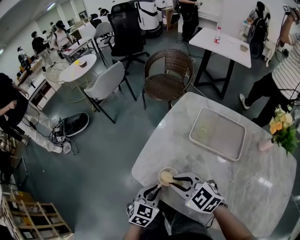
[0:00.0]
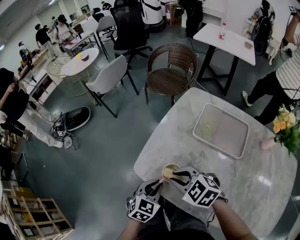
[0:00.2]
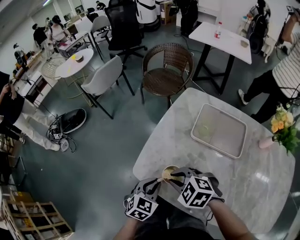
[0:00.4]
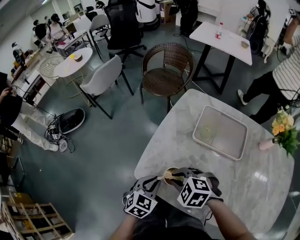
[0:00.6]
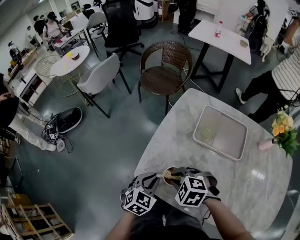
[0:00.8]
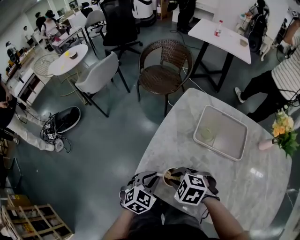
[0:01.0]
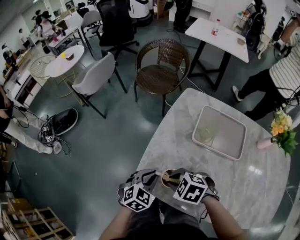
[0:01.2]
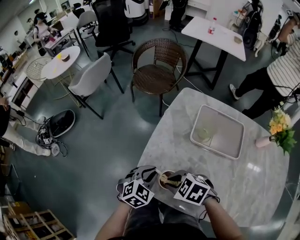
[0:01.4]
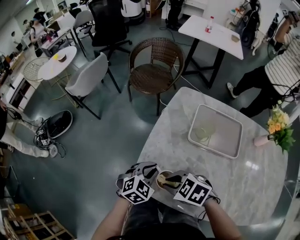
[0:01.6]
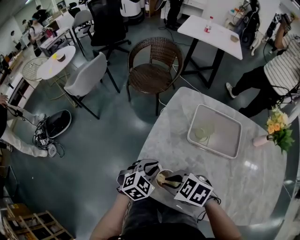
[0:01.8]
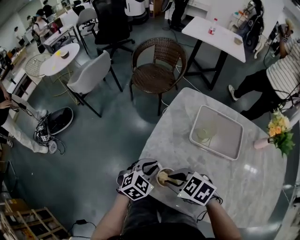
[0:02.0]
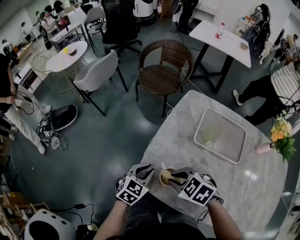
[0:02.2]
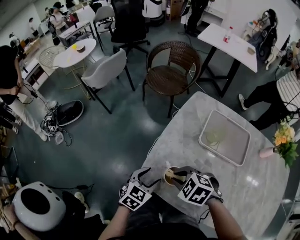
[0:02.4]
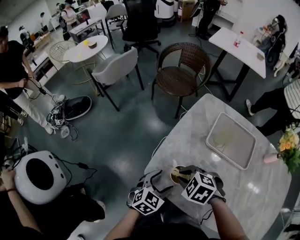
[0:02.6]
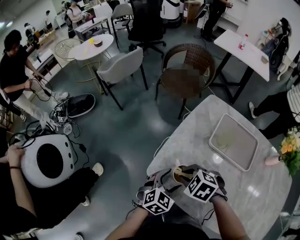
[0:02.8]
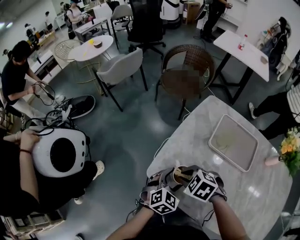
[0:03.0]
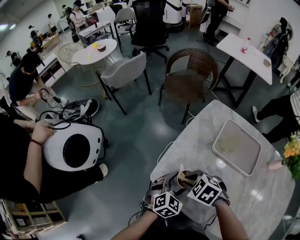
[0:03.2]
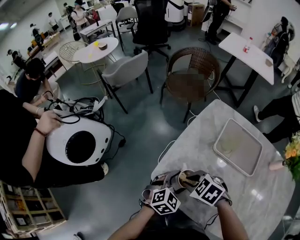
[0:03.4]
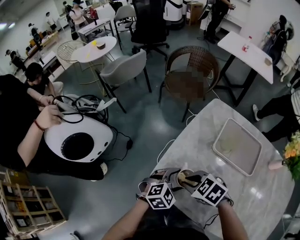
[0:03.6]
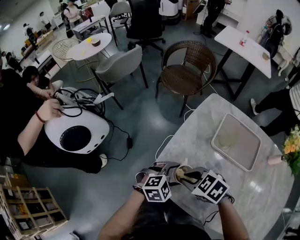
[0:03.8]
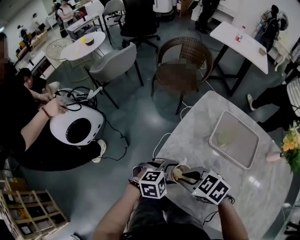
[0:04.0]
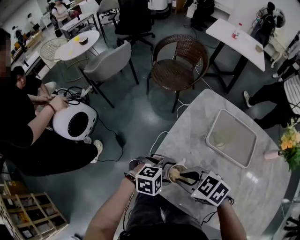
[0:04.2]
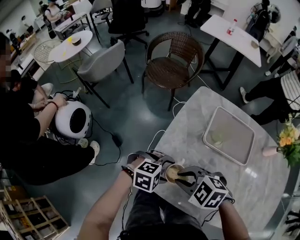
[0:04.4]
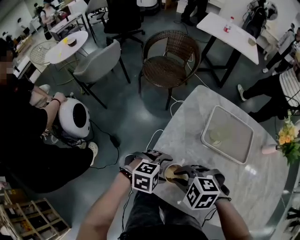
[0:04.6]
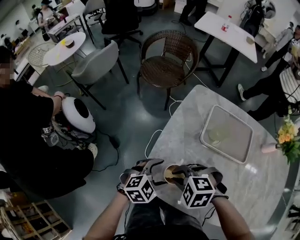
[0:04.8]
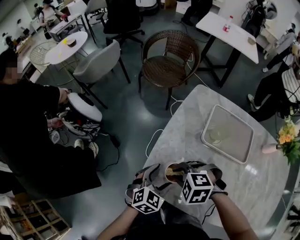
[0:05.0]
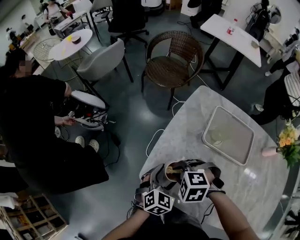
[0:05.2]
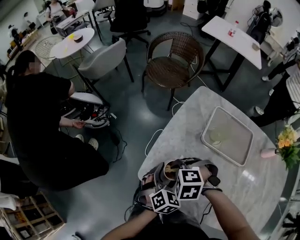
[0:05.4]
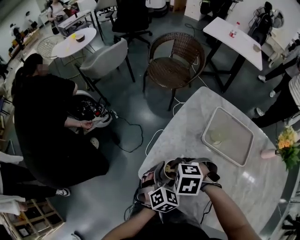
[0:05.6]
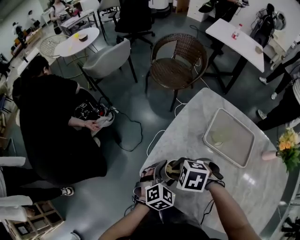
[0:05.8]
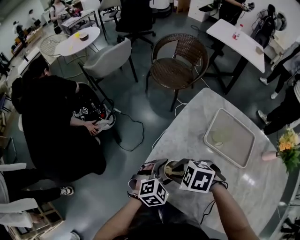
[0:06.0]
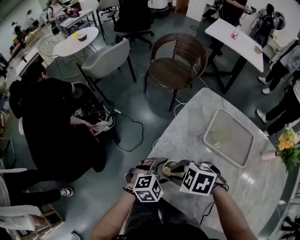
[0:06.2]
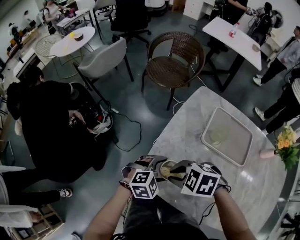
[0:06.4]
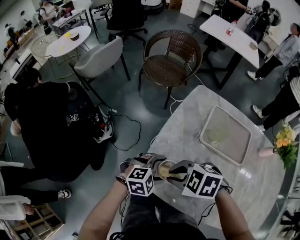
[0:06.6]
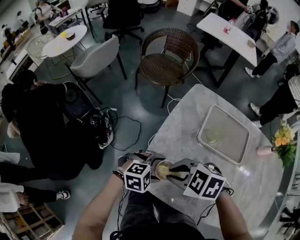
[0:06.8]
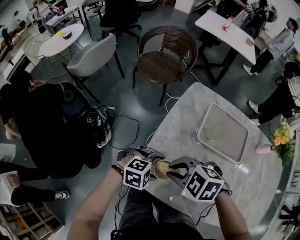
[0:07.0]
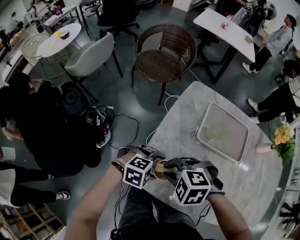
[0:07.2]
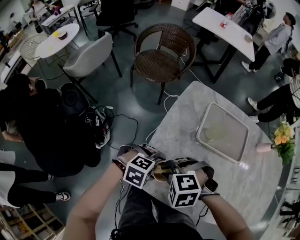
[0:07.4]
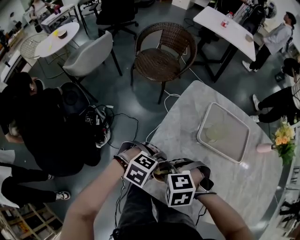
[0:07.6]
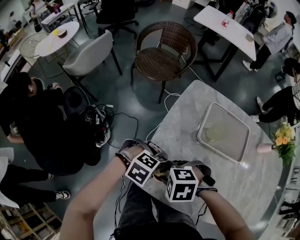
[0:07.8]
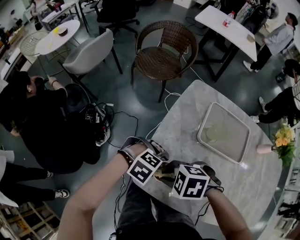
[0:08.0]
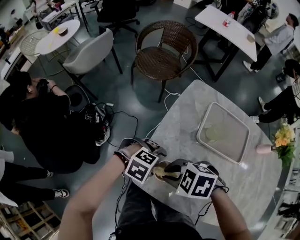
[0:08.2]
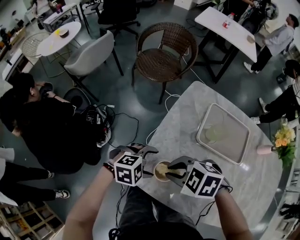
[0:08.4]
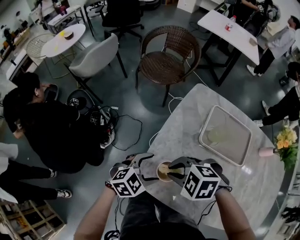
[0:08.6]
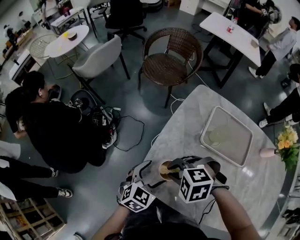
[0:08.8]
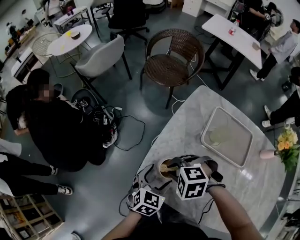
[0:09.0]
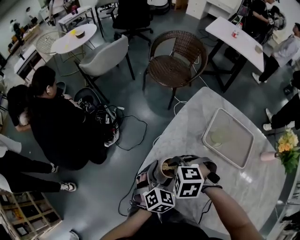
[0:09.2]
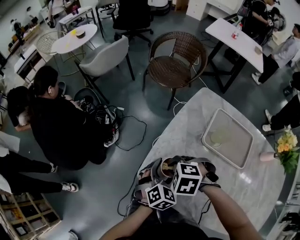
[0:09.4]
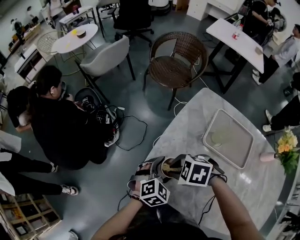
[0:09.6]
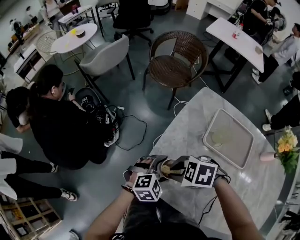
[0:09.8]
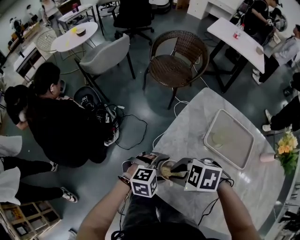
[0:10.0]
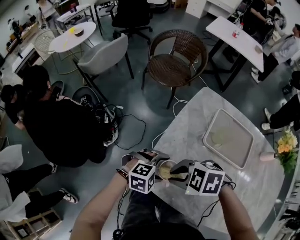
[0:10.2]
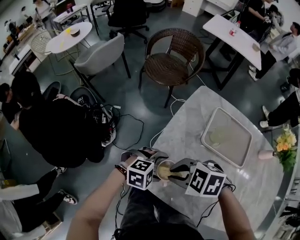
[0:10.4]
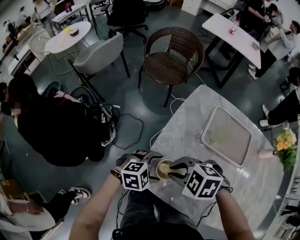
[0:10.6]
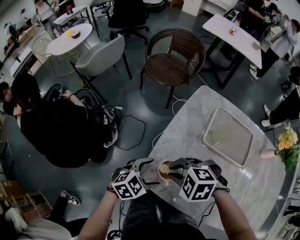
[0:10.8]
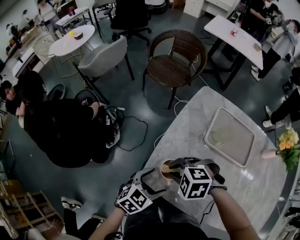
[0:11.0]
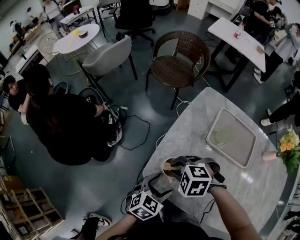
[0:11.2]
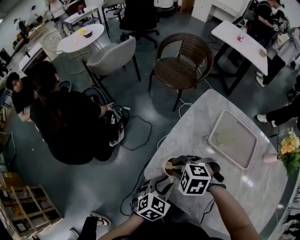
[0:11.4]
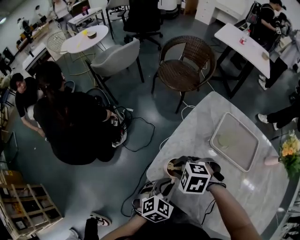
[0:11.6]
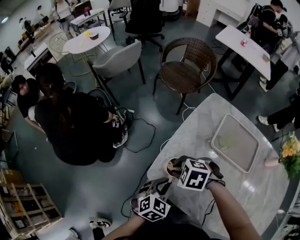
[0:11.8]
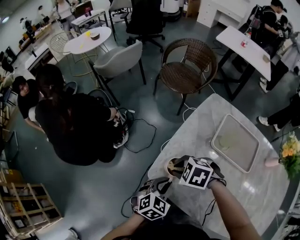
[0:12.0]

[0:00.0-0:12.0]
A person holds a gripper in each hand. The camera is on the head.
0:00.0 to 0:01.6: The right gripper ends up about 5 cm from where it was, and swivels roughly 30 degrees; the left gripper moves approximately 15 cm, and turns by some 30 degrees.
0:01.6 to 0:03.0: The left gripper moves approximately 5 cm, and opens.
0:03.0 to 0:04.4: The left gripper rotates approximately 60 degrees.
0:04.4 to 0:06.0: The left gripper swivels approximately 40 degrees.
0:06.0 to 0:07.6: The right gripper rotates about 20 degrees, while the left gripper turns by approximately 60 degrees.
0:07.6 to 0:09.0: The left gripper rotates some 90 degrees.
0:09.0 to 0:10.4: The right gripper moves some 5 cm, and turns by some 20 degrees; the left gripper swivels about 60 degrees.
0:10.4 to 0:12.0: The right gripper moves downward, some 5 cm. Meanwhile the left gripper moves about 5 cm, rotates approximately 60 degrees, and closes its fingers.

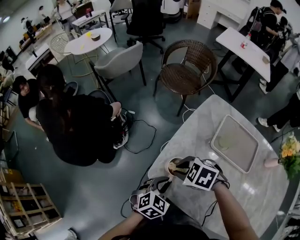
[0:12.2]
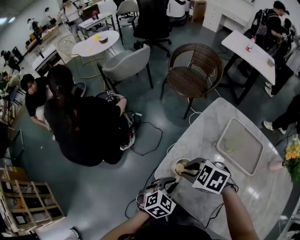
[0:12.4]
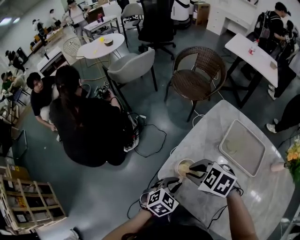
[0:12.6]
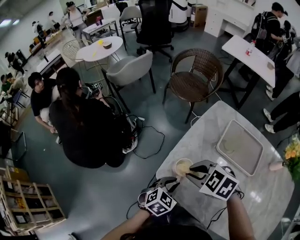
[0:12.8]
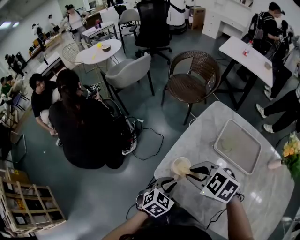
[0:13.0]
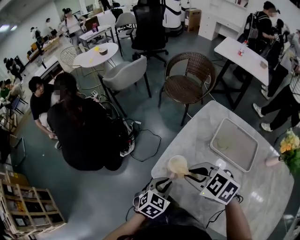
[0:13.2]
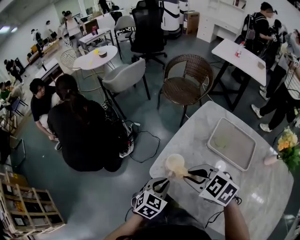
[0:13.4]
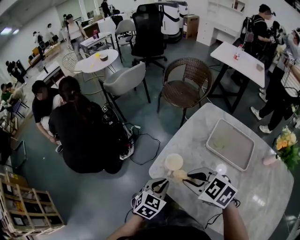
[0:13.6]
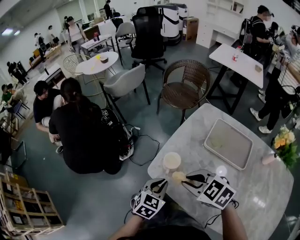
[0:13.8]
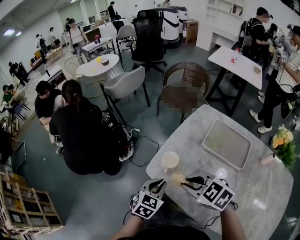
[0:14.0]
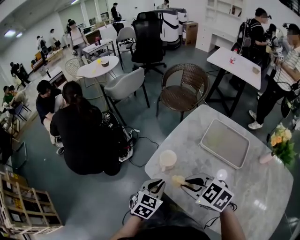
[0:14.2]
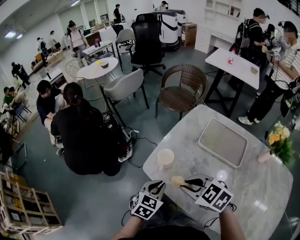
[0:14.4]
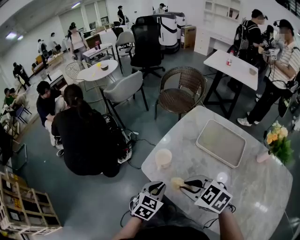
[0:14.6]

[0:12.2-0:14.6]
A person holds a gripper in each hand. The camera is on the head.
0:12.2 to 0:13.4: The right gripper is displaced upward by about 10 cm, and turns by roughly 20 degrees.
0:13.4 to 0:14.6: The left gripper is displaced backward by some 5 cm; the right gripper goes about 10 cm backward.

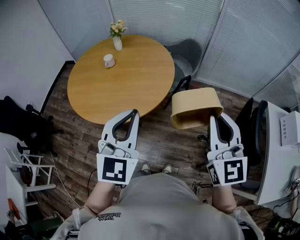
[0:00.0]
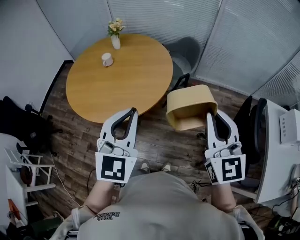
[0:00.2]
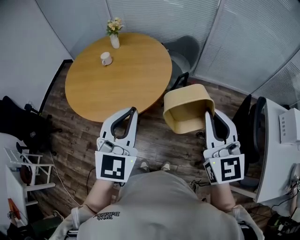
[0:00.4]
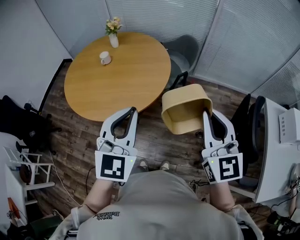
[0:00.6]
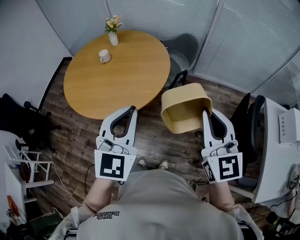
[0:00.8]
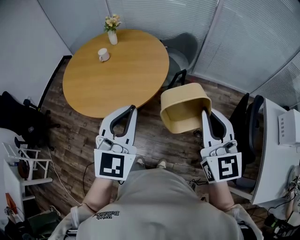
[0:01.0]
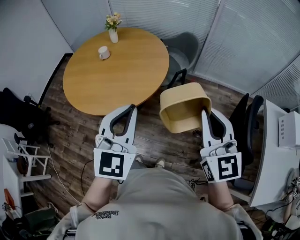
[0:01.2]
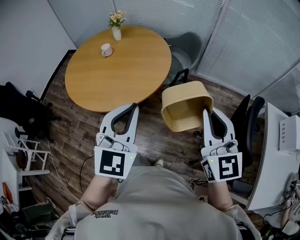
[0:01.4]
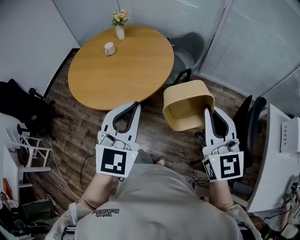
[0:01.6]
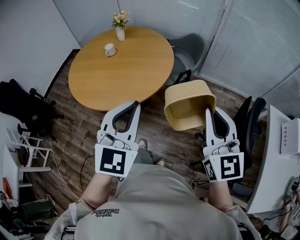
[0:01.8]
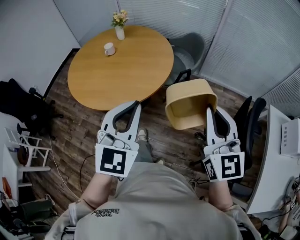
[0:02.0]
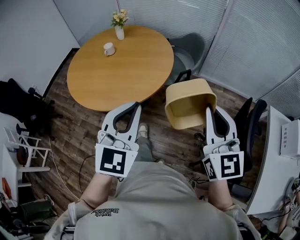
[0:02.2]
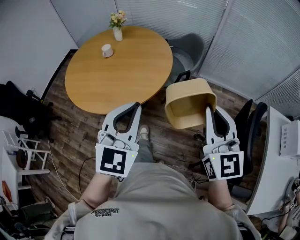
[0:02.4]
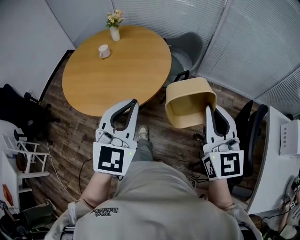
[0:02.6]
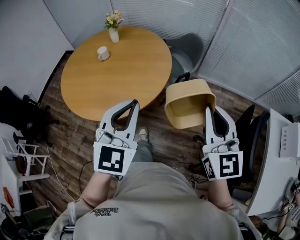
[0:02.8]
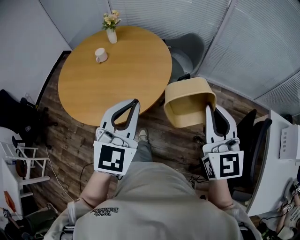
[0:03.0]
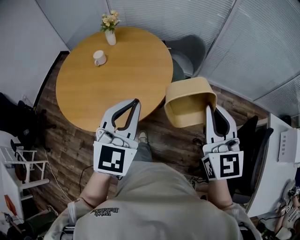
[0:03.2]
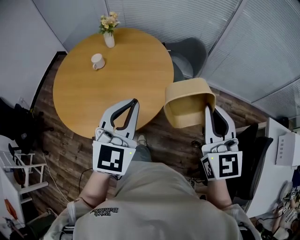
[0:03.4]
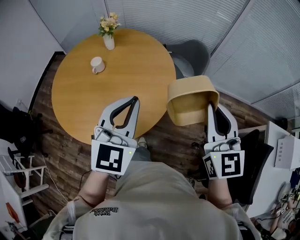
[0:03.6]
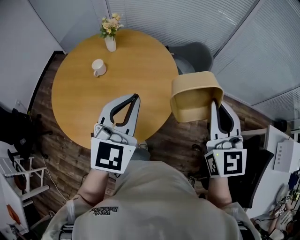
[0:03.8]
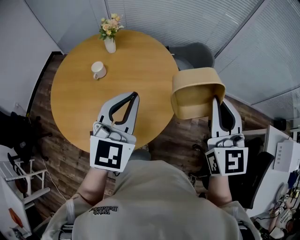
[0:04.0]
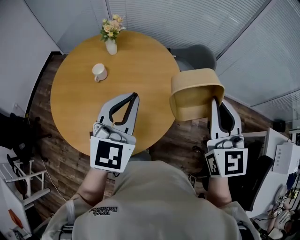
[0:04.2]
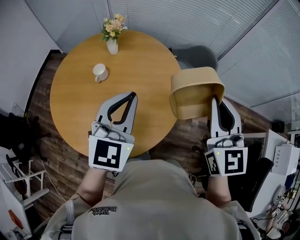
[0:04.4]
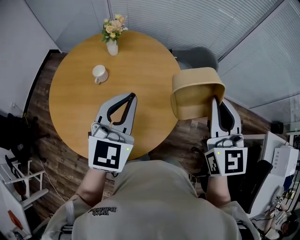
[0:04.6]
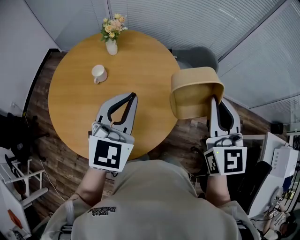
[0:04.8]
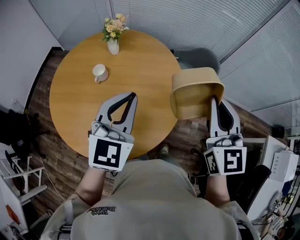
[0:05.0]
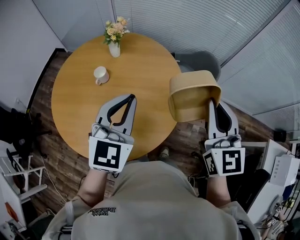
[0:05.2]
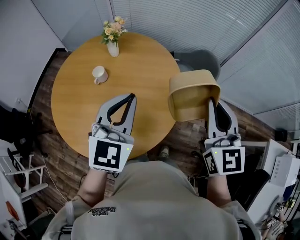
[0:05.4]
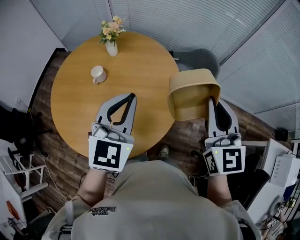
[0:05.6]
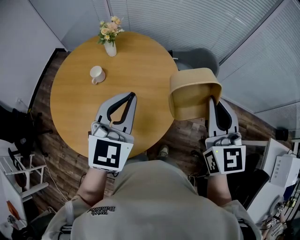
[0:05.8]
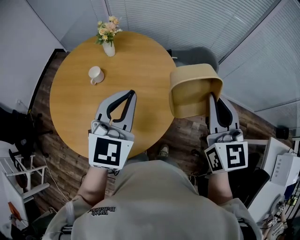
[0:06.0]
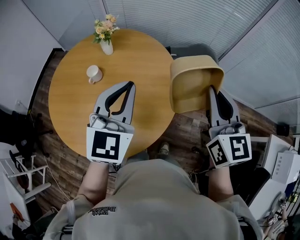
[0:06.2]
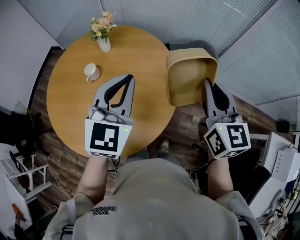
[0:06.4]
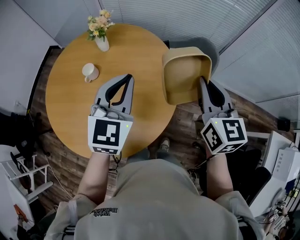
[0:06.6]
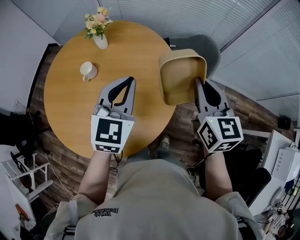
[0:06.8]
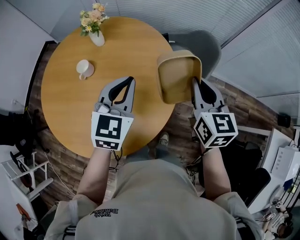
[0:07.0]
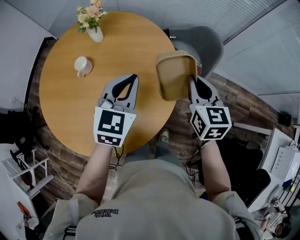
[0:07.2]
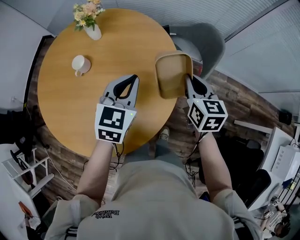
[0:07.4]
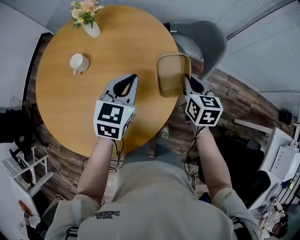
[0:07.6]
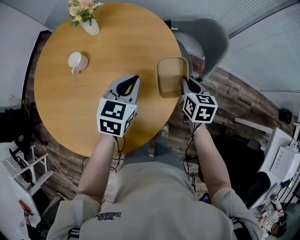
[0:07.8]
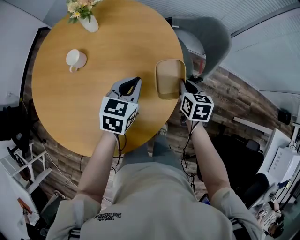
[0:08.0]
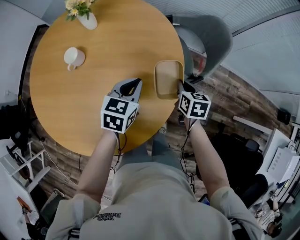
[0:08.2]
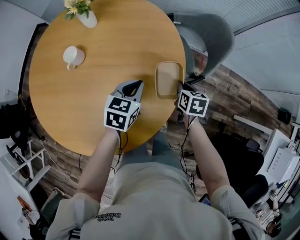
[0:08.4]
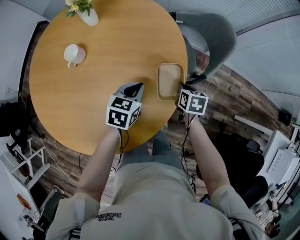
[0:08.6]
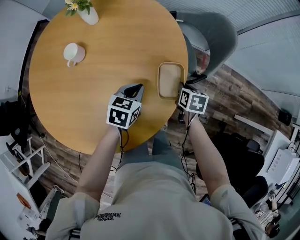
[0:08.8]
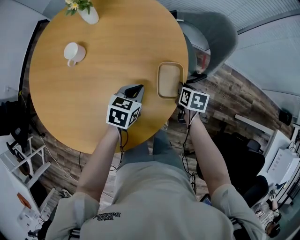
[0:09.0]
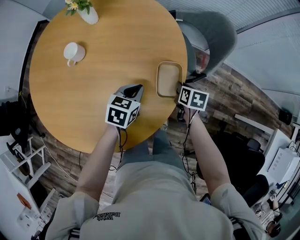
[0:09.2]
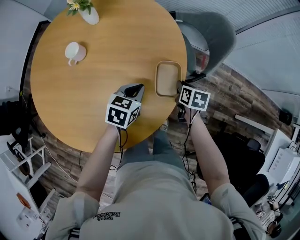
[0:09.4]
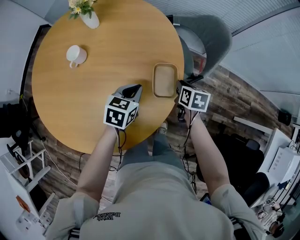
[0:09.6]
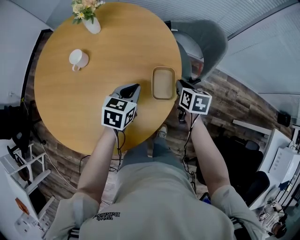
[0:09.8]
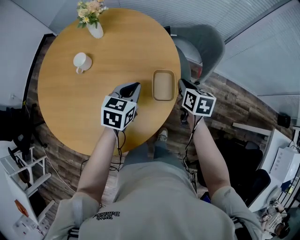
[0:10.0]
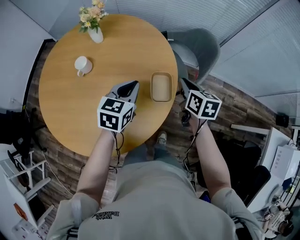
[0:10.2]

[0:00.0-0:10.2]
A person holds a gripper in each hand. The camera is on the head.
0:00.0 to 0:01.4: The right gripper shifts by about 5 cm; the left gripper heads to the right, covering roughly 5 cm.
0:01.4 to 0:03.0: Both grippers travel together forward, some 10 cm.
0:03.0 to 0:04.4: Both grippers move forward and to the left, some 30 cm.
0:04.4 to 0:05.8: The left gripper ends up roughly 5 cm from where it was; the right gripper moves roughly 5 cm.
0:05.8 to 0:07.2: Both grippers travel together downward and forward, roughly 20 cm. The right gripper swivels roughly 20 degrees.
0:07.2 to 0:08.8: The grippers both shift downward by some 25 cm. The right gripper angles its fingers downward, by about 30 degrees. The left gripper changes its angle by approximately 30 degrees.
0:08.8 to 0:10.2: The grippers both shift upward by roughly 15 cm. The right gripper changes its angle by approximately 20 degrees.
